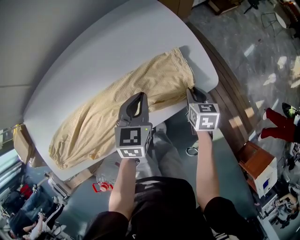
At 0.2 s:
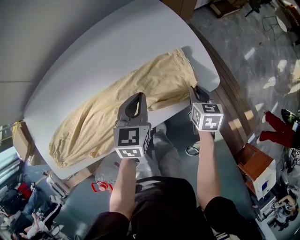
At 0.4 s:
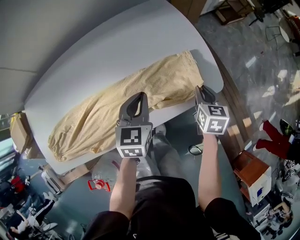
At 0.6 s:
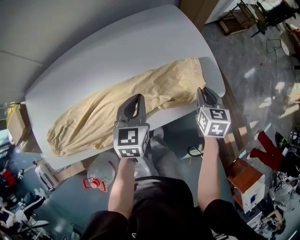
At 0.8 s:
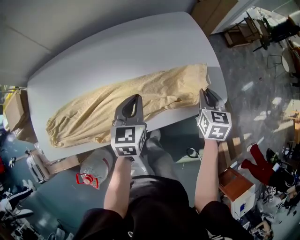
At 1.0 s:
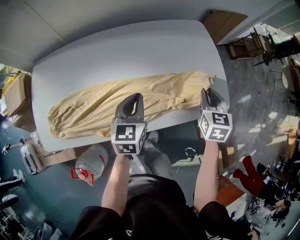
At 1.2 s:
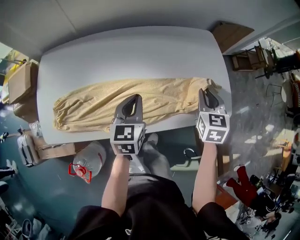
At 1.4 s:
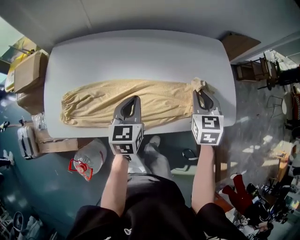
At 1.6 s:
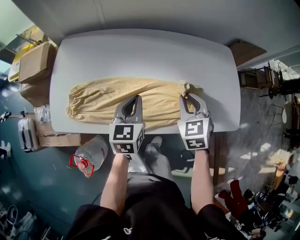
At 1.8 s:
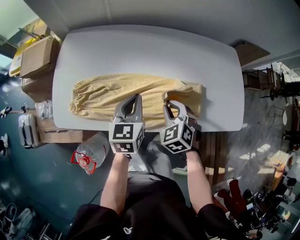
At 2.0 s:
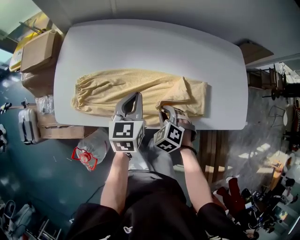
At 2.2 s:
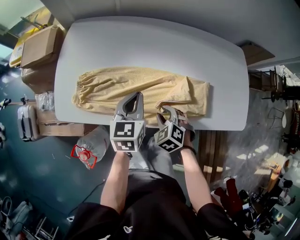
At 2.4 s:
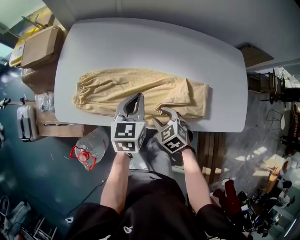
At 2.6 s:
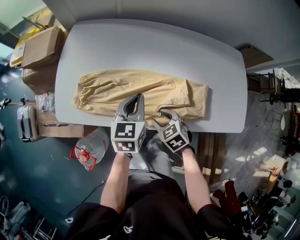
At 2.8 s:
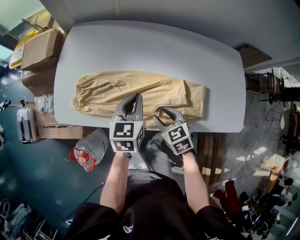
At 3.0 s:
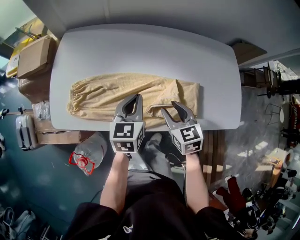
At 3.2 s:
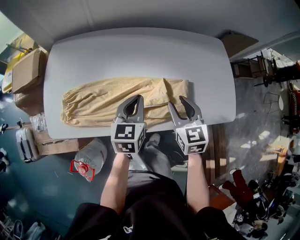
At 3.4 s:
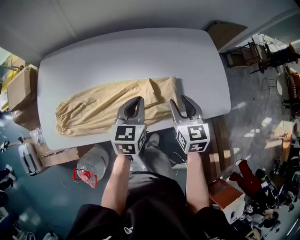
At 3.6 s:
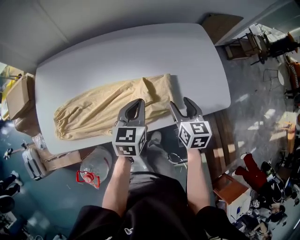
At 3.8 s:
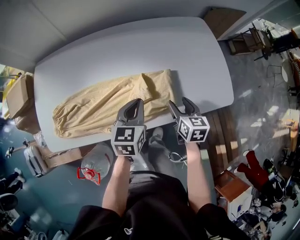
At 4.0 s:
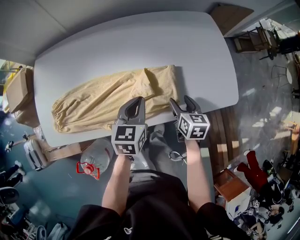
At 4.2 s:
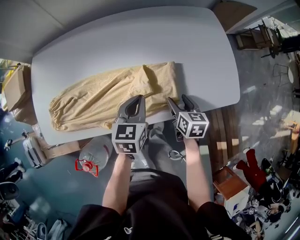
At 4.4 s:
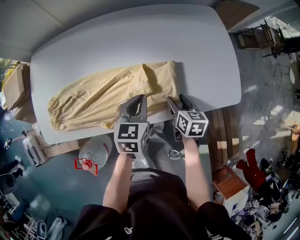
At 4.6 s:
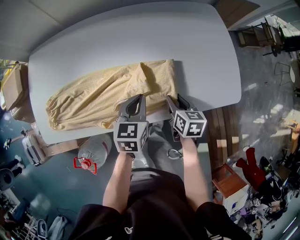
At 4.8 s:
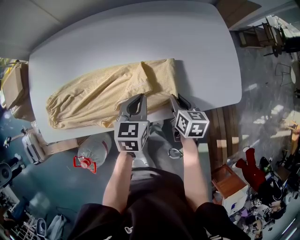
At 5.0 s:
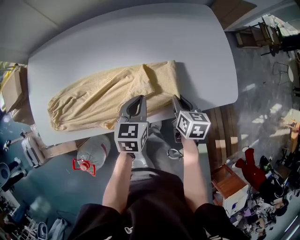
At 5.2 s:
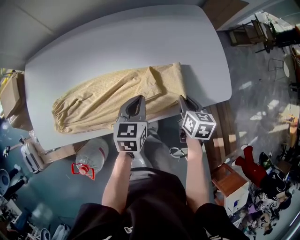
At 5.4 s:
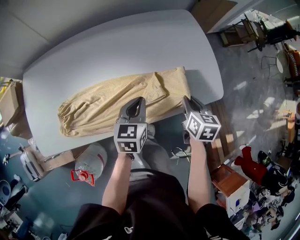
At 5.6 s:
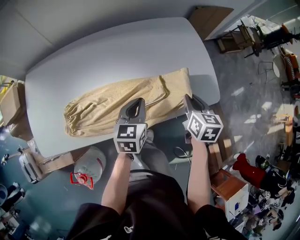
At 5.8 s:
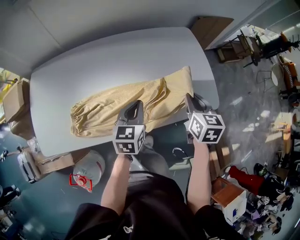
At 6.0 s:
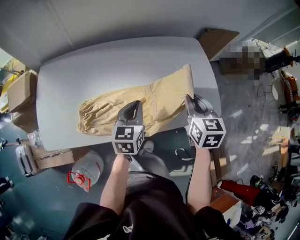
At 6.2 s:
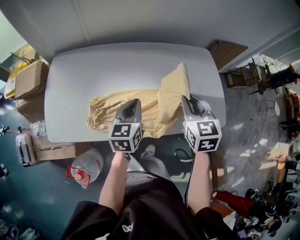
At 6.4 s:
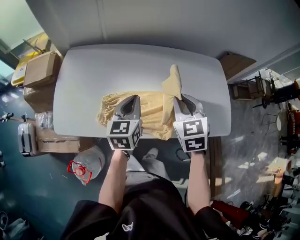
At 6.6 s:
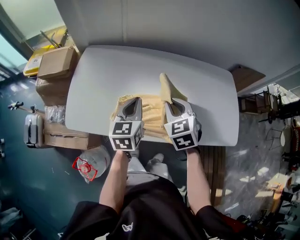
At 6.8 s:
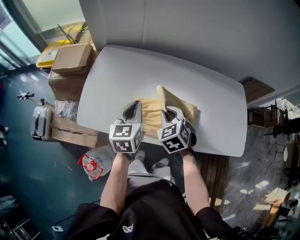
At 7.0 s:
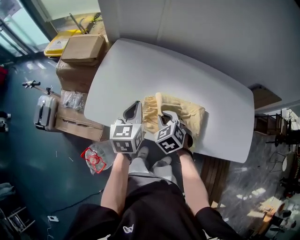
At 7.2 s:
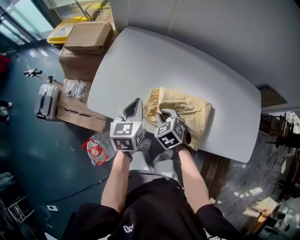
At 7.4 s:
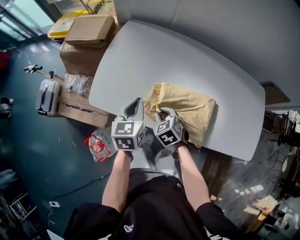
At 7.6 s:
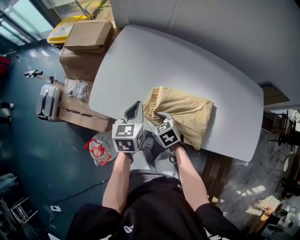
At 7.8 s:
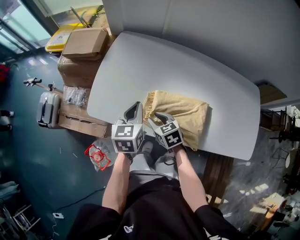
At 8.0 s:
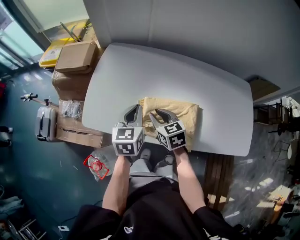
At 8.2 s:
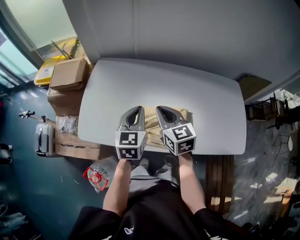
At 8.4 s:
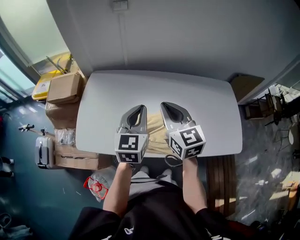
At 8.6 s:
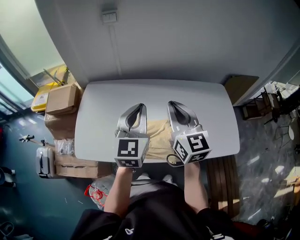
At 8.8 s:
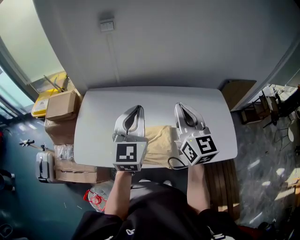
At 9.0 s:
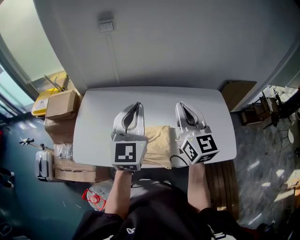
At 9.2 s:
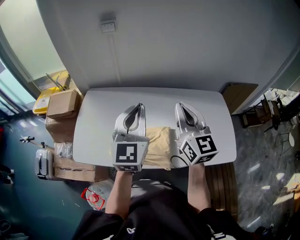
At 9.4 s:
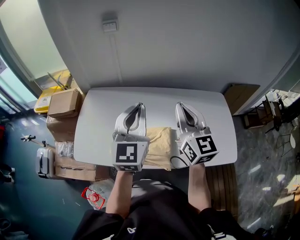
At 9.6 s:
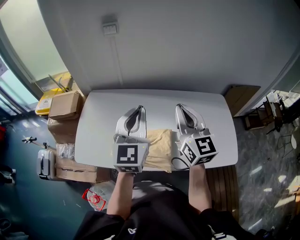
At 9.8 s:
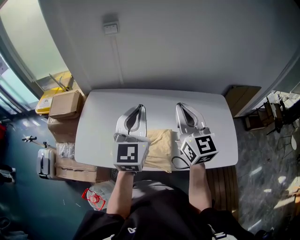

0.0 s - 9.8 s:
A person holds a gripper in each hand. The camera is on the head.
0.0 s - 1.4 s: The right gripper travels to the left and upward by roughly 35 cm, and swivels about 40 degrees, while the left gripper goes some 30 cm to the left, and rotates approximately 30 degrees.
1.4 s - 2.8 s: The right gripper changes place by about 30 cm, swivels some 40 degrees, and opens up, while the left gripper changes place by approximately 10 cm.
2.8 s - 4.2 s: The left gripper shifts by roughly 20 cm. Meanwhile the right gripper travels upward and back again, approximately 10 cm each way, twists some 40 degrees clockwise, seen from behind, and opens.
4.2 s - 5.6 s: The left gripper travels to the right by some 5 cm; the right gripper is displaced upward and to the right by about 15 cm, and closes.
5.6 s - 7.0 s: The left gripper changes place by roughly 40 cm, and swivels some 40 degrees. The right gripper goes upward and returns, approximately 10 cm each way, and rotates around the line of its fingers by roughly 70 degrees, counterclockwise from behind.
7.0 s - 8.4 s: The left gripper is displaced to the right and upward by about 15 cm, and turns by about 20 degrees; the right gripper heads upward and to the right, covering about 25 cm, tilts its fingers roughly 40 degrees upward, and opens, then closes once more.
8.4 s - 9.8 s: The right gripper heads to the right and upward, covering approximately 15 cm; the left gripper heads upward and to the right, covering some 15 cm.

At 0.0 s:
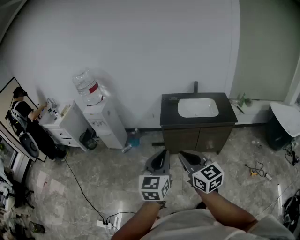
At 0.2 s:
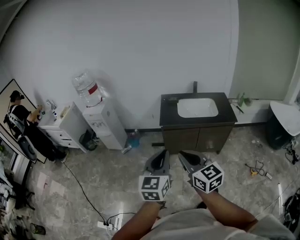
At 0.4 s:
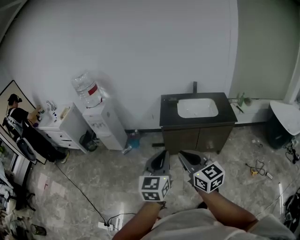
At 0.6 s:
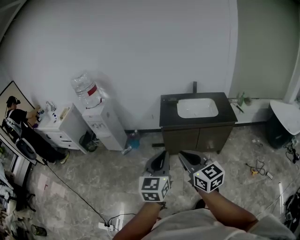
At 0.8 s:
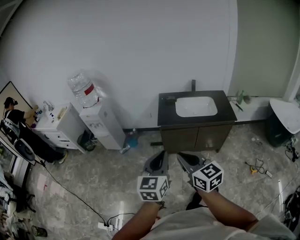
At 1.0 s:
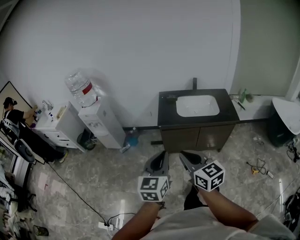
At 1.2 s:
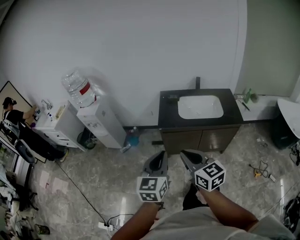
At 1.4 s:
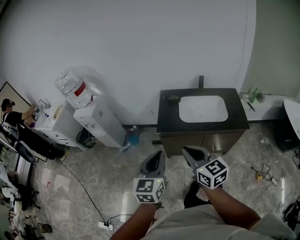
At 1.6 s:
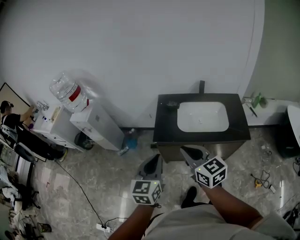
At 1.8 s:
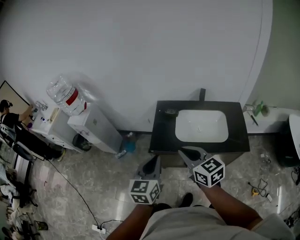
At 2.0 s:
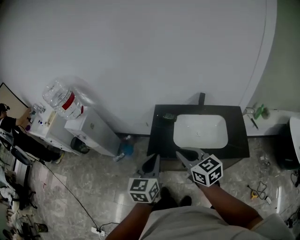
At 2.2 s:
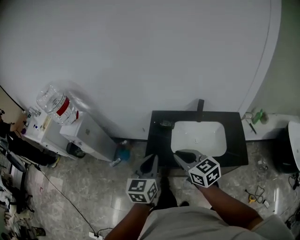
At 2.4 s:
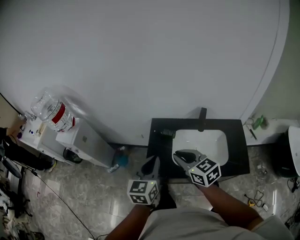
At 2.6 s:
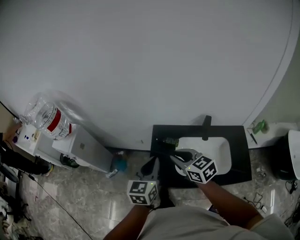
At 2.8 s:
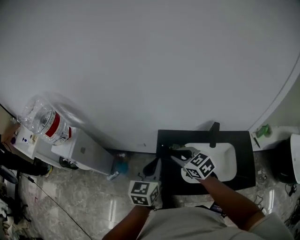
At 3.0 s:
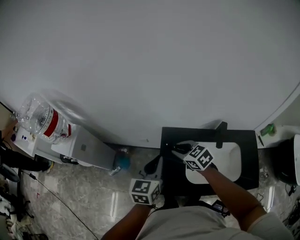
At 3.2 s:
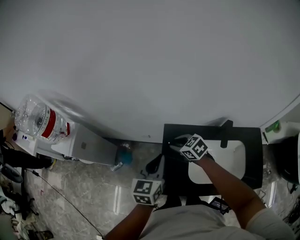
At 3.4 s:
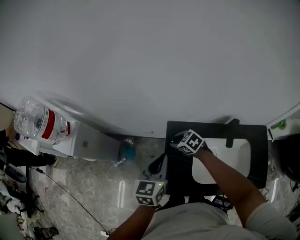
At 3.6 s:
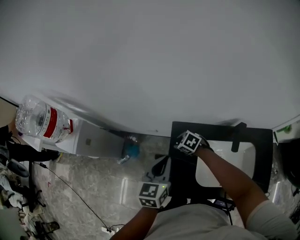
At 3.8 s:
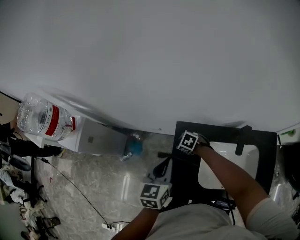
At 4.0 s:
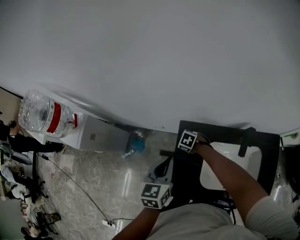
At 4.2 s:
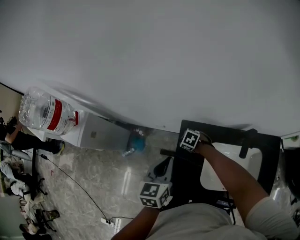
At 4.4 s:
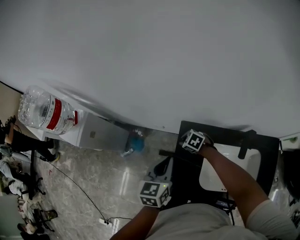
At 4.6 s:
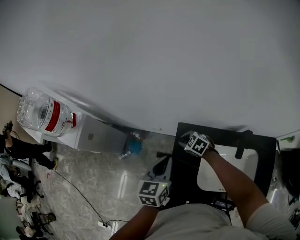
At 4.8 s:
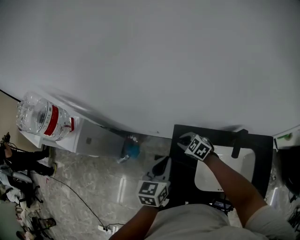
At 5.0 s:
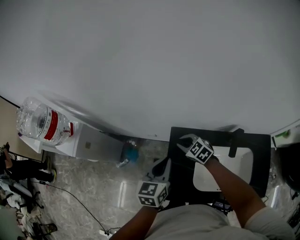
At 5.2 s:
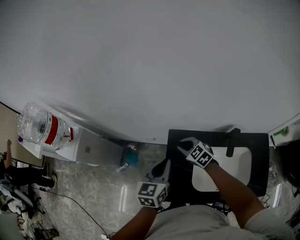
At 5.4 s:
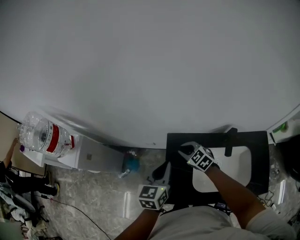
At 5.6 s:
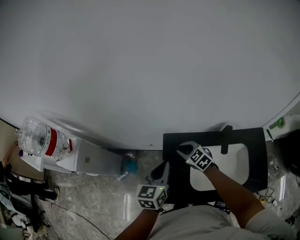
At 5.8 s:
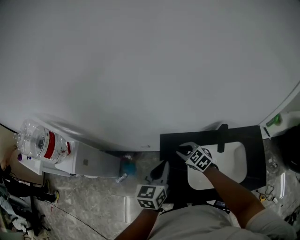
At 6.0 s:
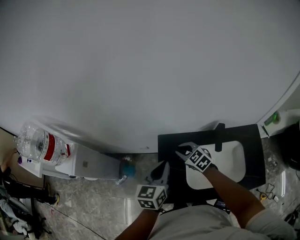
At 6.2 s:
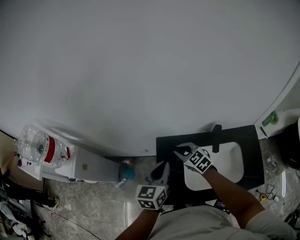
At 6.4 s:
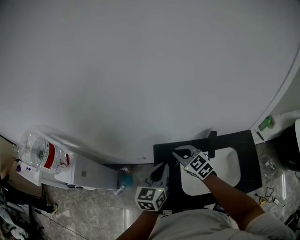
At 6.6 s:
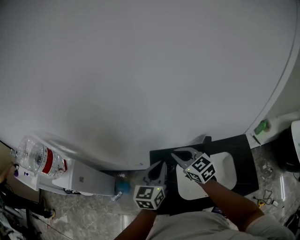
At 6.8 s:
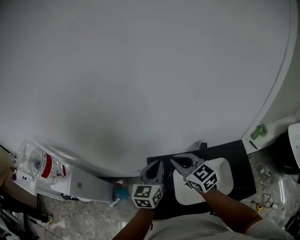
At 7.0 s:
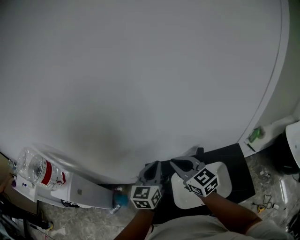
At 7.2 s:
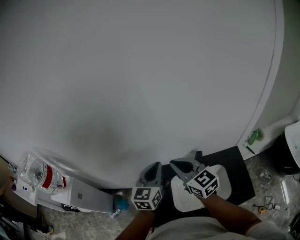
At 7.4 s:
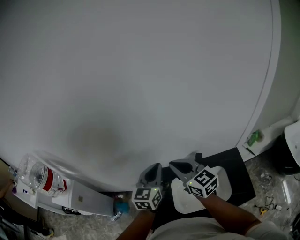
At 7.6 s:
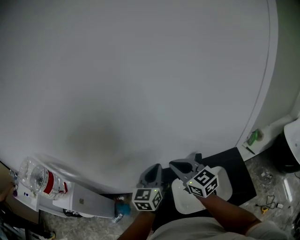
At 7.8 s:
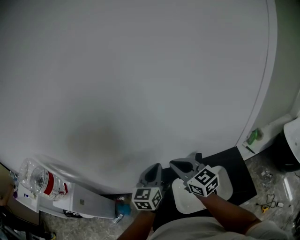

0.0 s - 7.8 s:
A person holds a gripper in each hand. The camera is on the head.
0.0 s - 1.6 s: The left gripper moves forward, about 35 cm. Meanwhile the right gripper travels forward and to the right by about 40 cm.
1.6 s - 3.2 s: The two grippers travel together, forward, about 60 cm. The right gripper changes its angle by about 40 degrees, and opens up.
3.2 s - 4.6 s: The left gripper shifts some 10 cm forward and downward; the right gripper travels downward and forward by approximately 15 cm, and turns by some 20 degrees.
4.6 s - 6.2 s: The left gripper goes about 15 cm to the right, upward and backward; the right gripper shifts approximately 20 cm upward, to the right and backward, and changes its angle by some 30 degrees.
6.2 s - 7.8 s: The left gripper heads upward, to the right and forward, covering some 15 cm. Meanwhile the right gripper is displaced upward by roughly 25 cm, and changes its angle by some 30 degrees.

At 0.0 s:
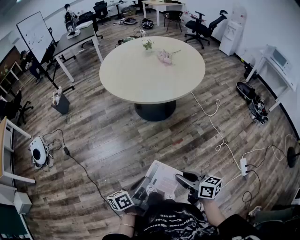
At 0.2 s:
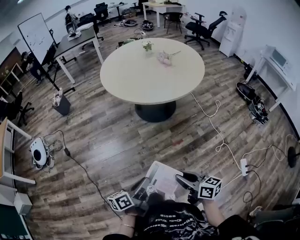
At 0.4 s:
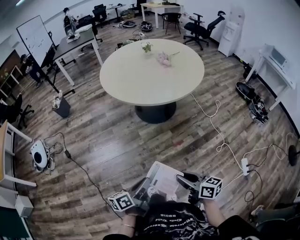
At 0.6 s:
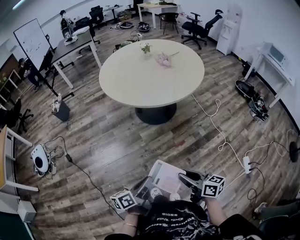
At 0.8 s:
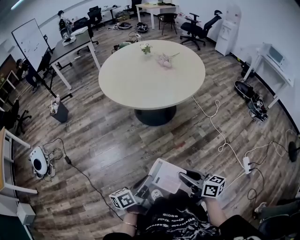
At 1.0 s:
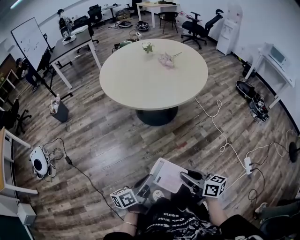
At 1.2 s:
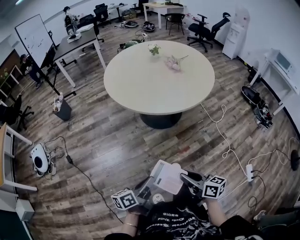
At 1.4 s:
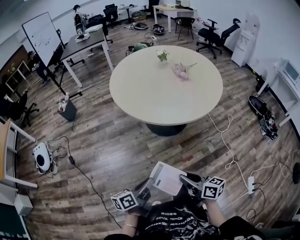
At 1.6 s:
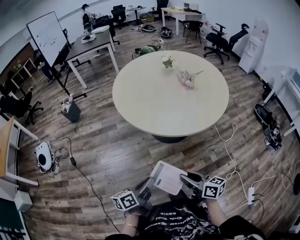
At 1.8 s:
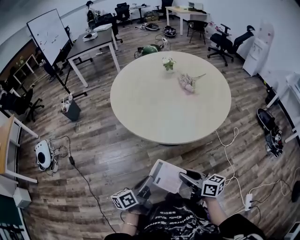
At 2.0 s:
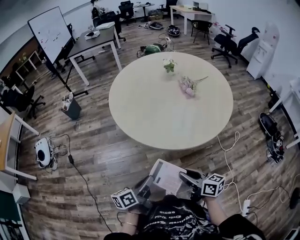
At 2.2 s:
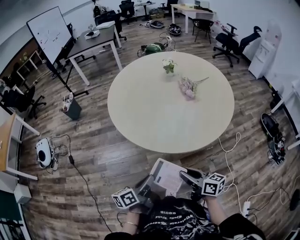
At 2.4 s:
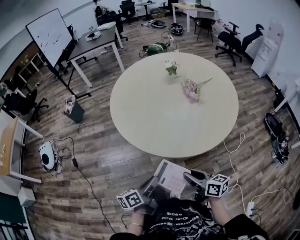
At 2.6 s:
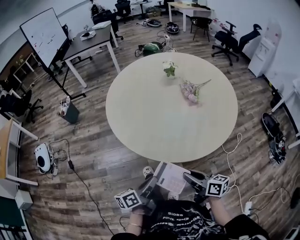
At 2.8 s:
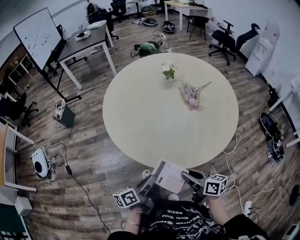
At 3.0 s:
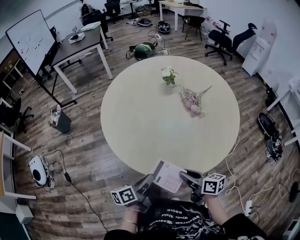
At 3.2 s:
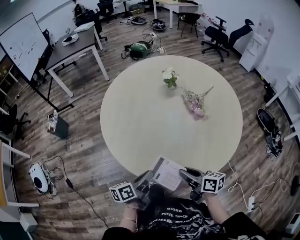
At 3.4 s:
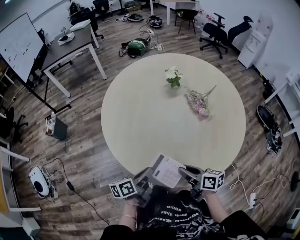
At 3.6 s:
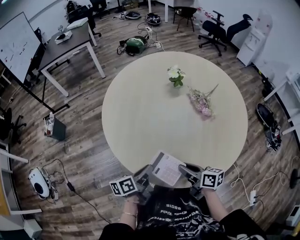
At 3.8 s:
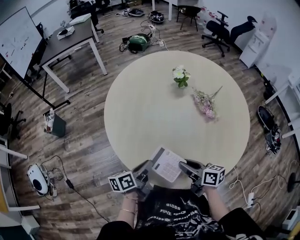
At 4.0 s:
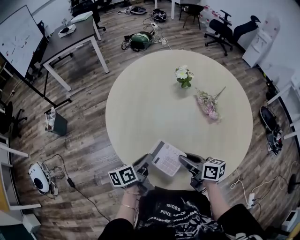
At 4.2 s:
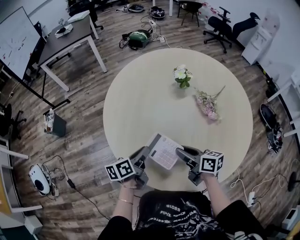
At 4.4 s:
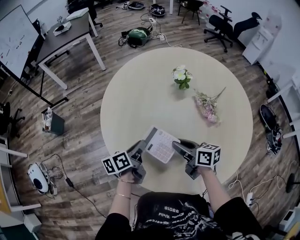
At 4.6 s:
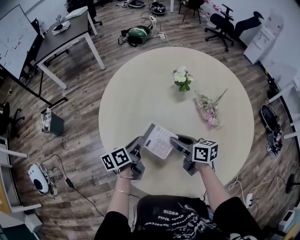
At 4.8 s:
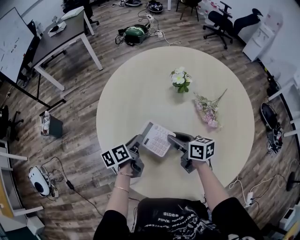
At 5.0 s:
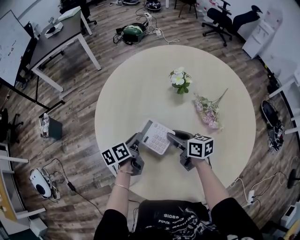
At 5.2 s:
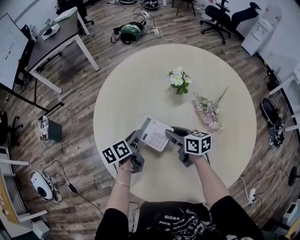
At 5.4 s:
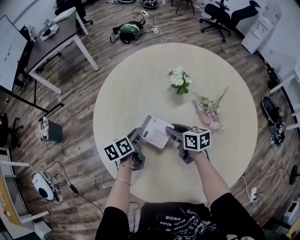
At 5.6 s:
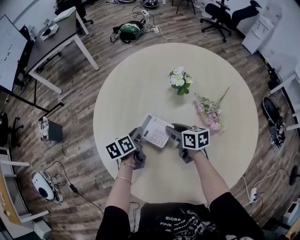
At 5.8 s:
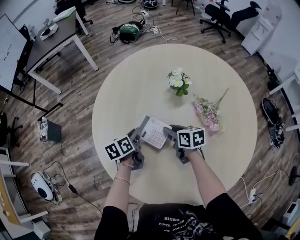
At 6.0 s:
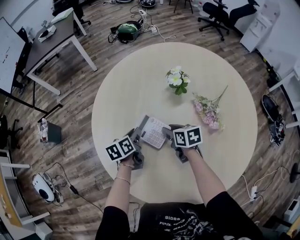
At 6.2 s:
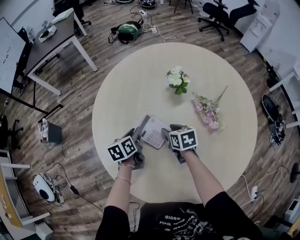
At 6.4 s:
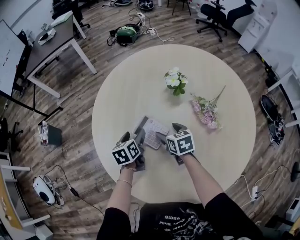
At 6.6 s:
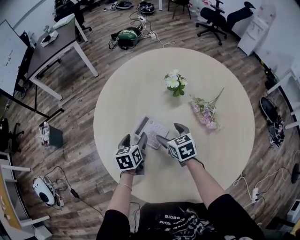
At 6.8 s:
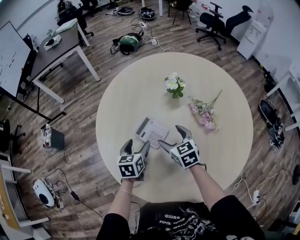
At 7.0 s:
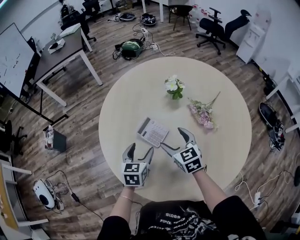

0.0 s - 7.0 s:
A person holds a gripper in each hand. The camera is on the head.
0.0 s - 1.4 s: The grippers both shift forward by some 15 cm.
1.4 s - 2.8 s: Both grippers move forward, approximately 30 cm.
2.8 s - 4.2 s: The left gripper travels forward by some 35 cm, while the right gripper shifts some 30 cm forward and to the left.
4.2 s - 5.6 s: Both grippers travel together forward, roughly 20 cm.
5.6 s - 7.0 s: The right gripper shifts some 10 cm upward and backward, swivels some 40 degrees, and opens its fingers; the left gripper goes about 15 cm backward and upward, changes its angle by approximately 40 degrees, and opens its fingers.
